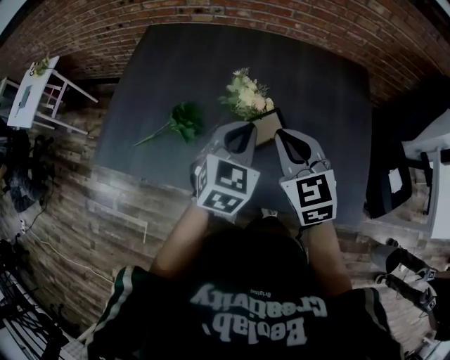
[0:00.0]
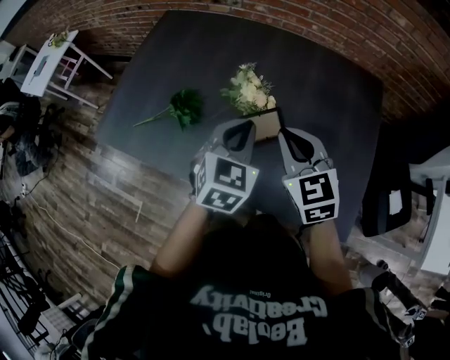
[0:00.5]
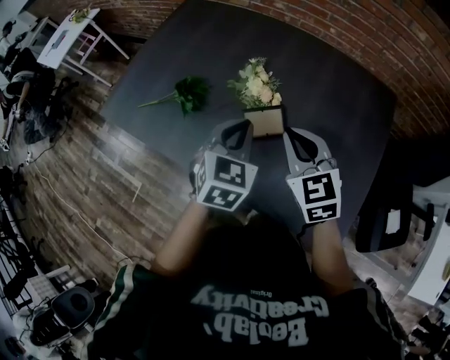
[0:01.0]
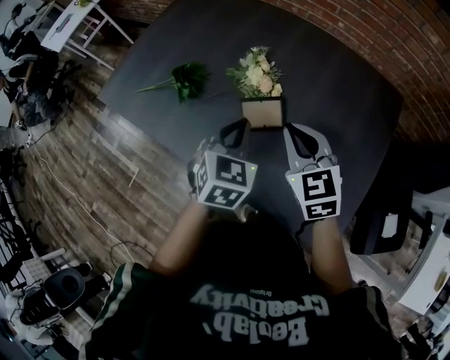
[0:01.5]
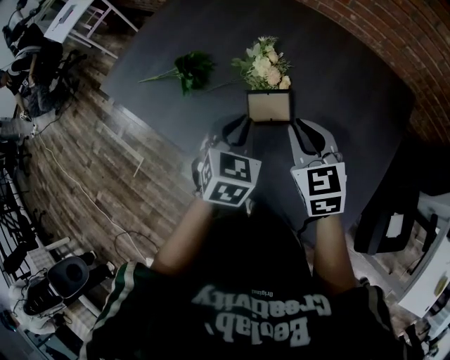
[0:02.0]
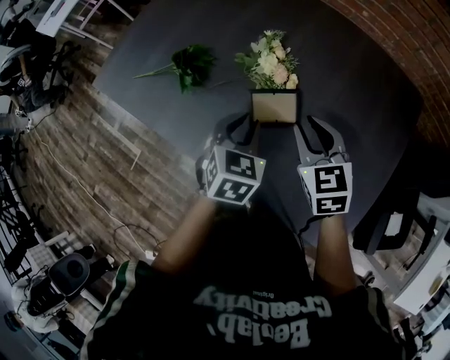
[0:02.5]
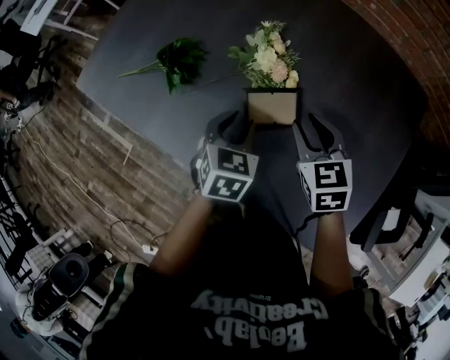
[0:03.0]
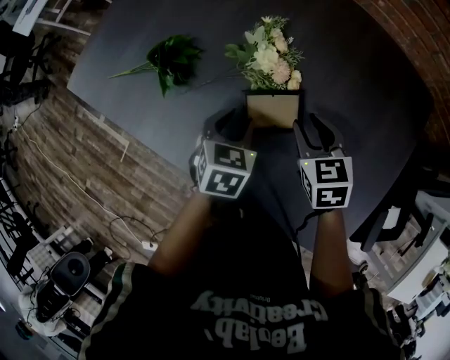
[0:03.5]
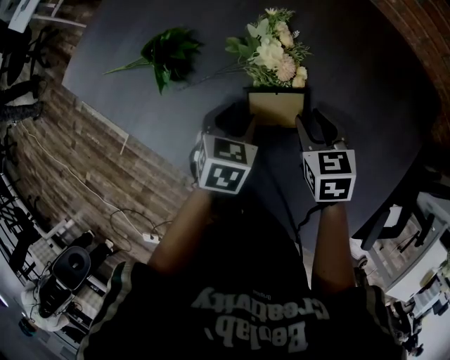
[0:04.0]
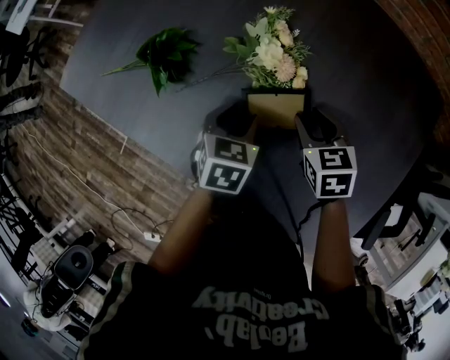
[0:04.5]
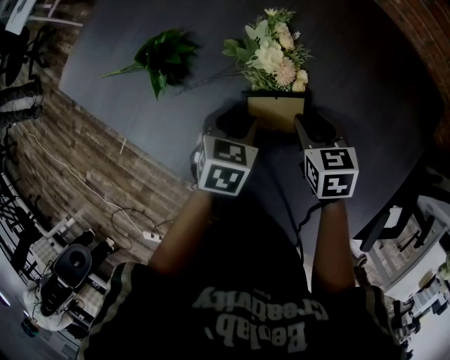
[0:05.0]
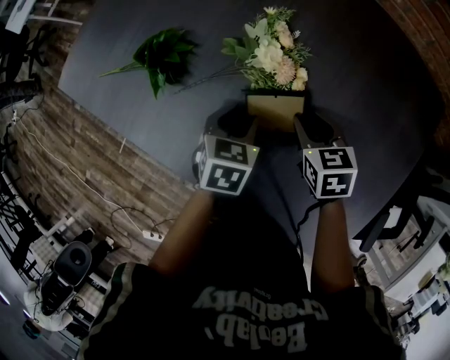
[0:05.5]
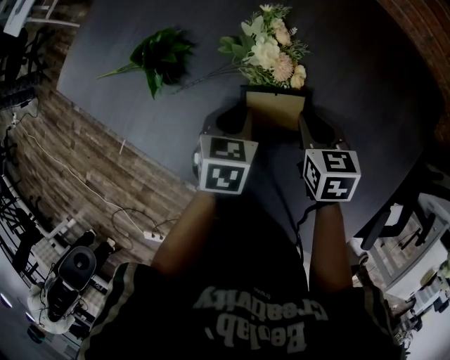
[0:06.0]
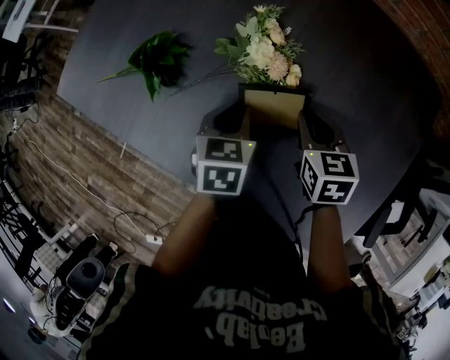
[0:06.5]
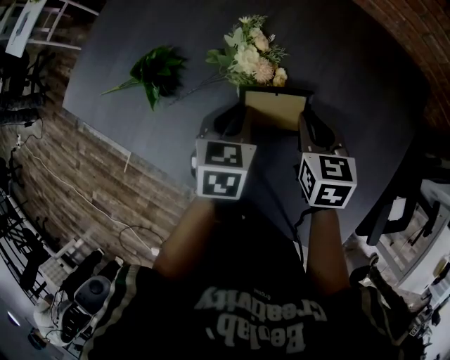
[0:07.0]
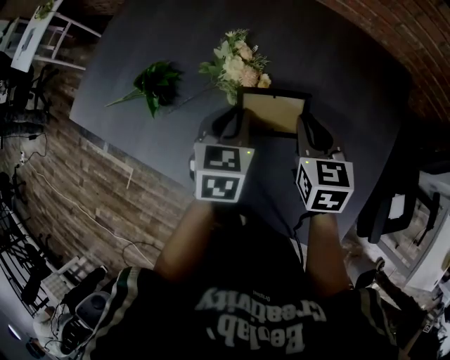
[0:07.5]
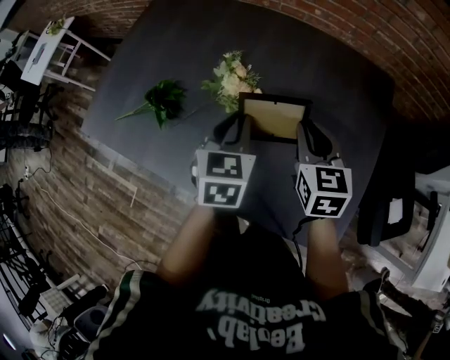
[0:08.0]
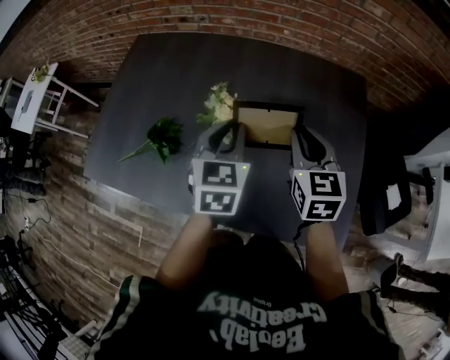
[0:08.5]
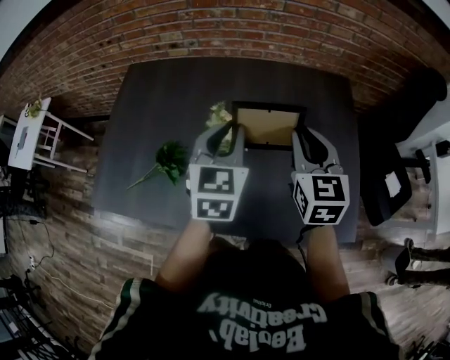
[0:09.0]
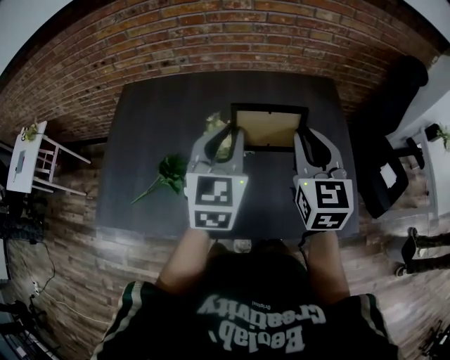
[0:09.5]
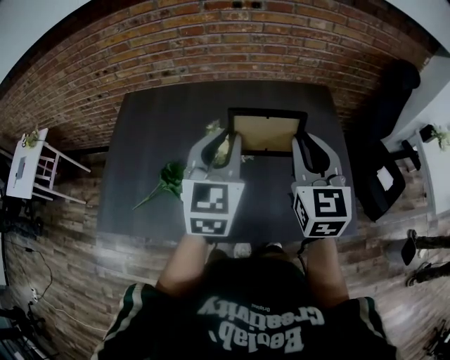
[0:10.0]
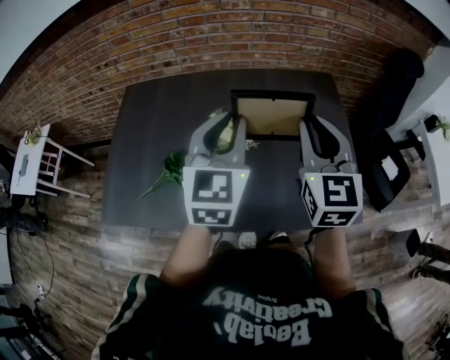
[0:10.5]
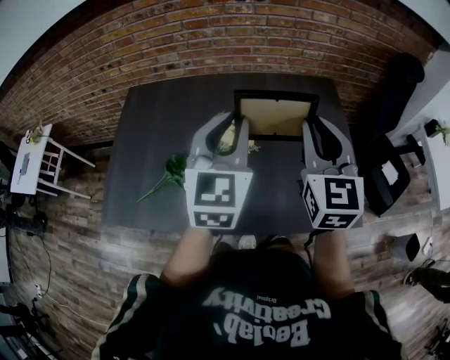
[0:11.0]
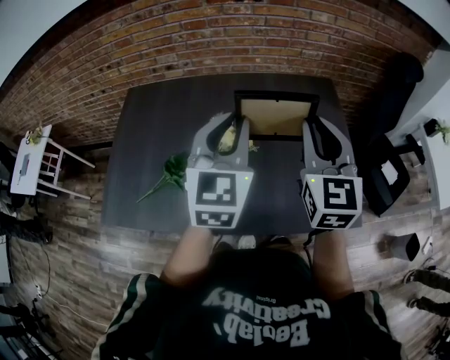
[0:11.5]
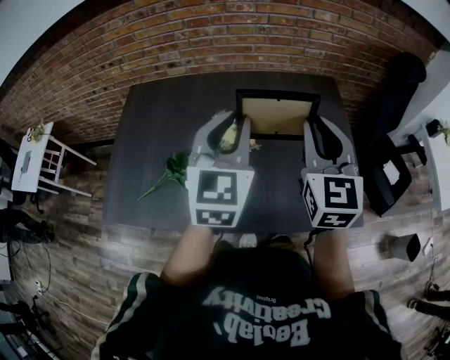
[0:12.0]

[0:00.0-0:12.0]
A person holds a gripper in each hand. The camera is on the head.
0:00.0 to 0:02.0: The left gripper heads downward, covering roughly 10 cm, and turns by about 30 degrees, while the right gripper heads to the right and downward, covering approximately 15 cm.
0:02.0 to 0:04.0: The two grippers go roughly 20 cm downward and forward. The left gripper rotates approximately 20 degrees, and opens up; the right gripper changes its angle by roughly 20 degrees, and opens up.
0:04.0 to 0:06.0: The right gripper closes. Meanwhile the left gripper closes up.
0:06.0 to 0:08.0: The grippers both shift upward by approximately 20 cm. The right gripper changes its angle by approximately 30 degrees. Meanwhile the left gripper swivels some 20 degrees.
0:08.0 to 0:10.0: The left gripper travels upward by approximately 20 cm, and changes its angle by roughly 40 degrees. Meanwhile the right gripper is displaced upward and backward by about 25 cm, and rotates roughly 30 degrees.
0:10.0 to 0:12.0: The grippers stay close to where they were, moving slightly.

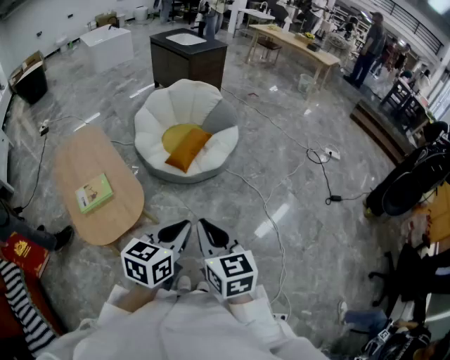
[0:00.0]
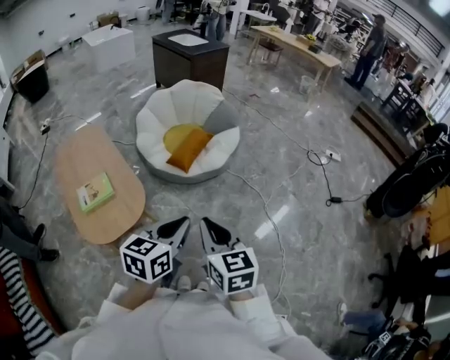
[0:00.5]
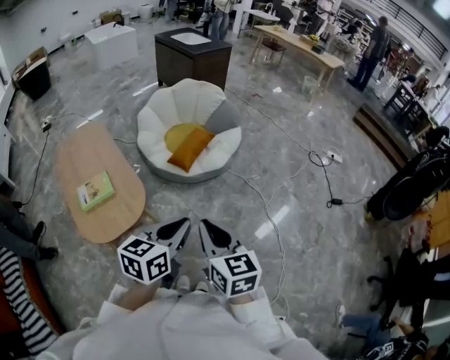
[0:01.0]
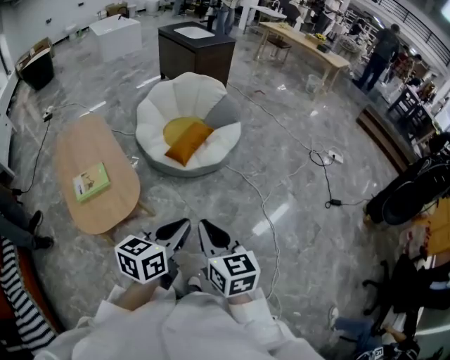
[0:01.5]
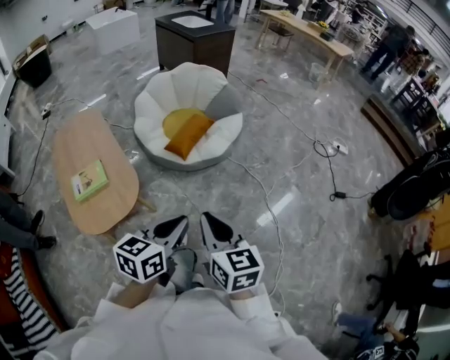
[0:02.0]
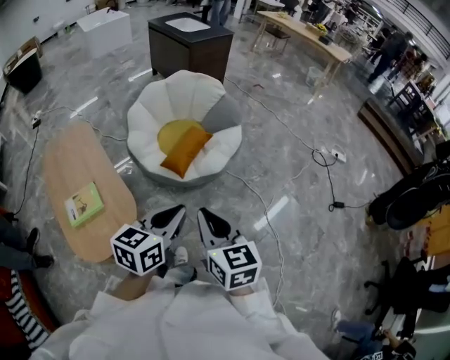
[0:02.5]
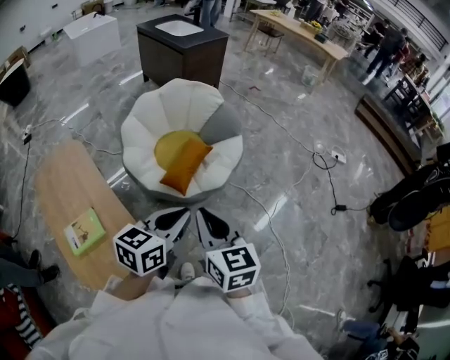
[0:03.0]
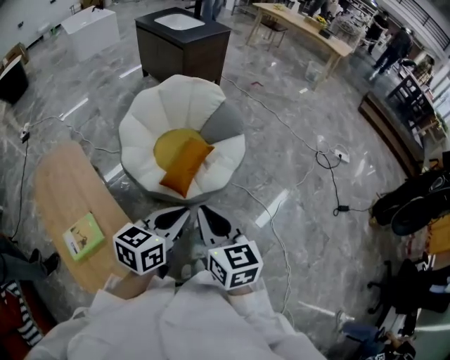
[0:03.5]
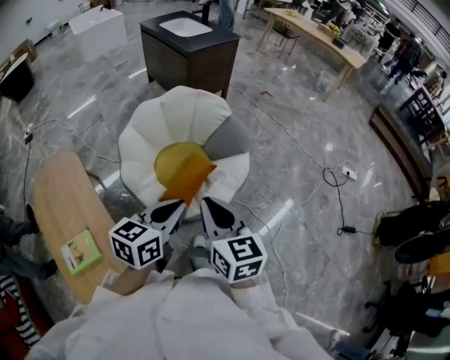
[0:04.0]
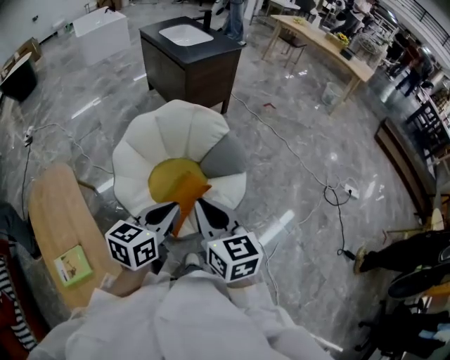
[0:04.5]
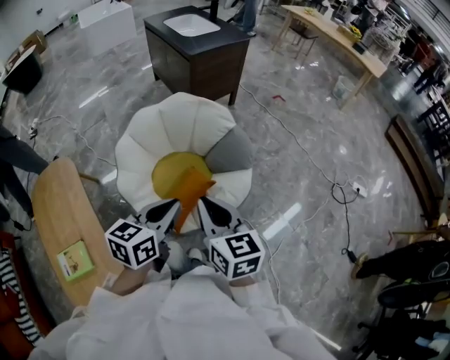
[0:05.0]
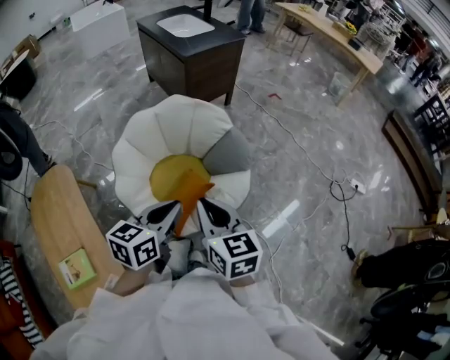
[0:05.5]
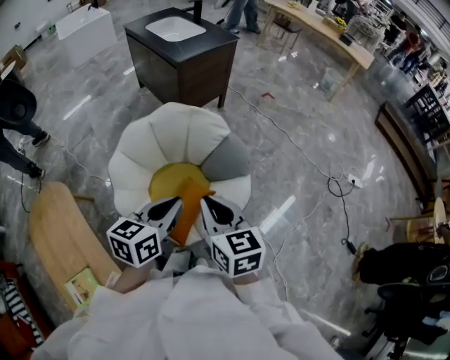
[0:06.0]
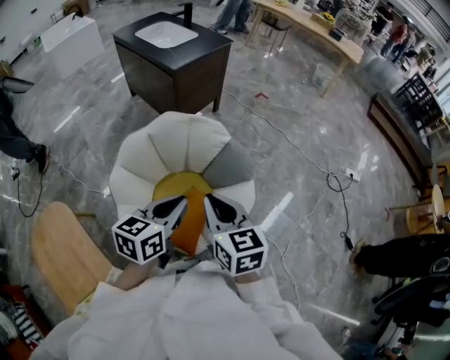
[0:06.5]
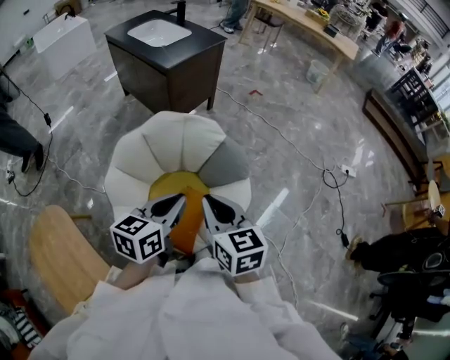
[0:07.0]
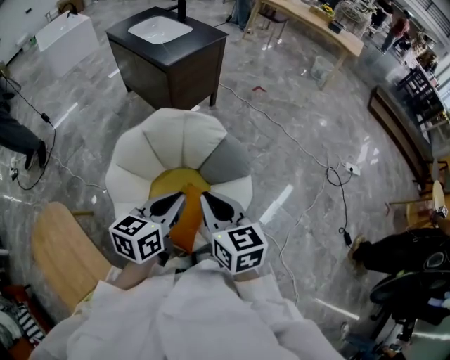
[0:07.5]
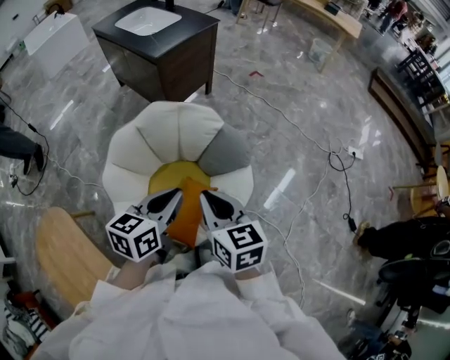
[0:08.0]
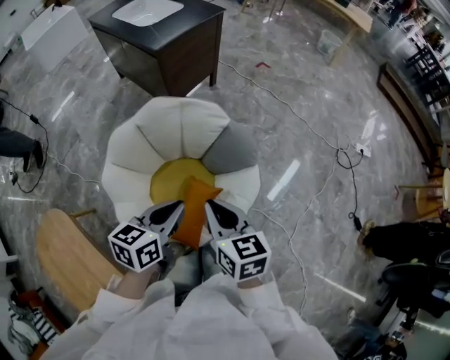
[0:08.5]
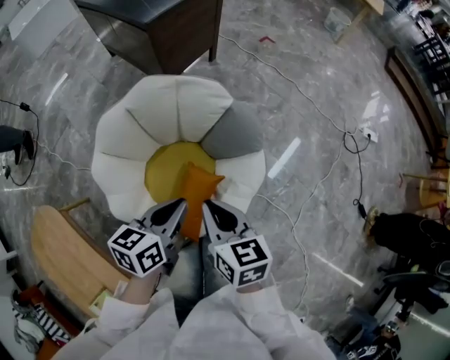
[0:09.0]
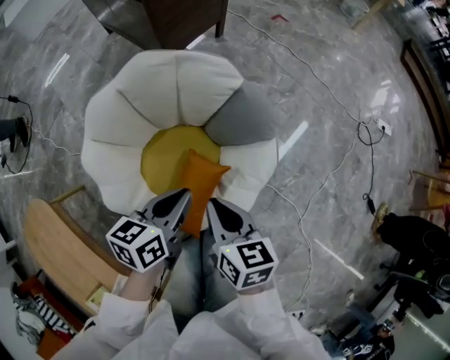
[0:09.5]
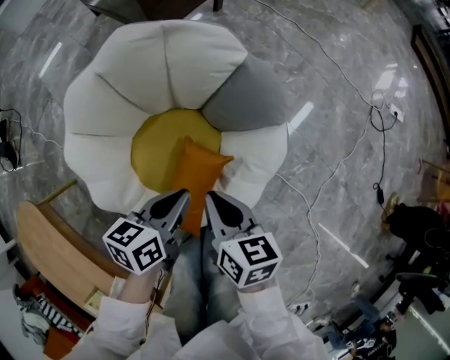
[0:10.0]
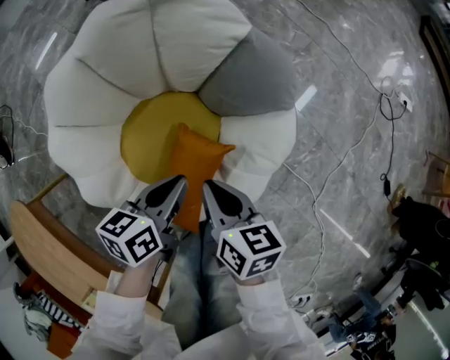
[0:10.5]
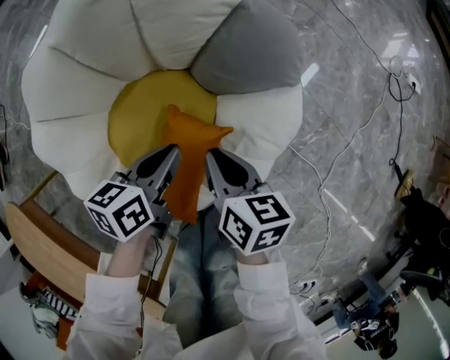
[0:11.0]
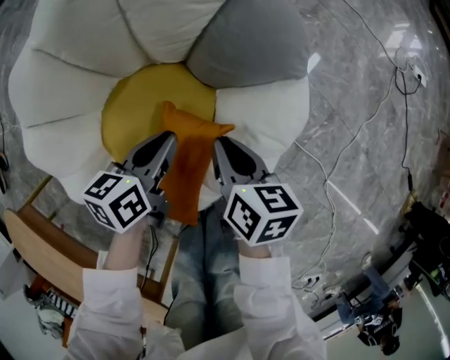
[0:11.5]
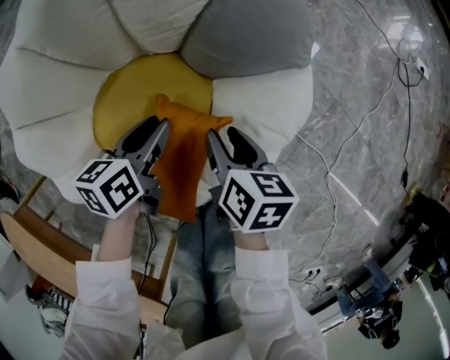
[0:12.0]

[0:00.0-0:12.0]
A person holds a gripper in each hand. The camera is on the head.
0:00.0 to 0:02.0: The left gripper moves about 5 cm; the right gripper ends up approximately 5 cm from where it was.
0:02.0 to 0:04.0: The pair of grippers is taken forward, some 50 cm.
0:04.0 to 0:06.0: Both grippers travel together forward, about 25 cm.
0:06.0 to 0:08.0: Both grippers move forward, about 10 cm.
0:08.0 to 0:10.0: Both grippers move downward, some 35 cm. The right gripper swivels approximately 20 degrees; the left gripper turns by some 20 degrees.
0:10.0 to 0:12.0: Both grippers travel together downward, roughly 25 cm. The left gripper opens its fingers. Meanwhile the right gripper opens up.

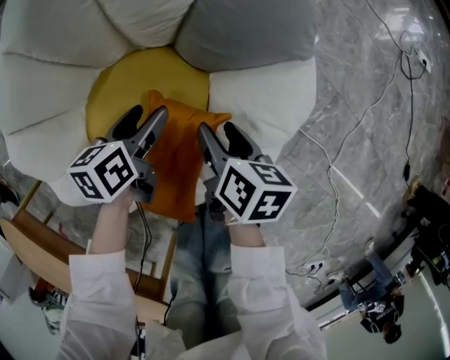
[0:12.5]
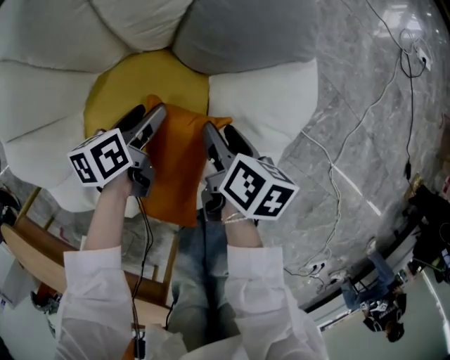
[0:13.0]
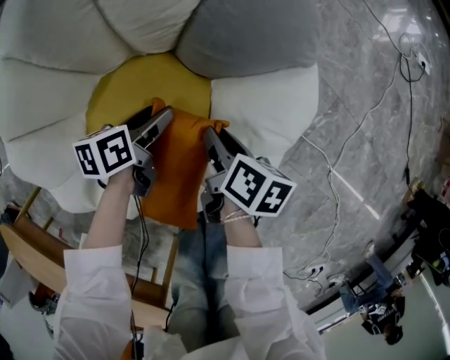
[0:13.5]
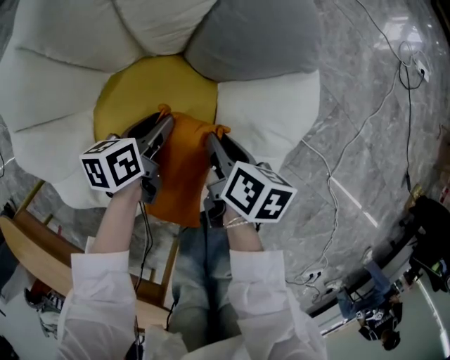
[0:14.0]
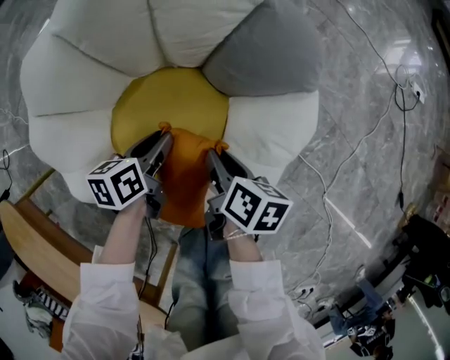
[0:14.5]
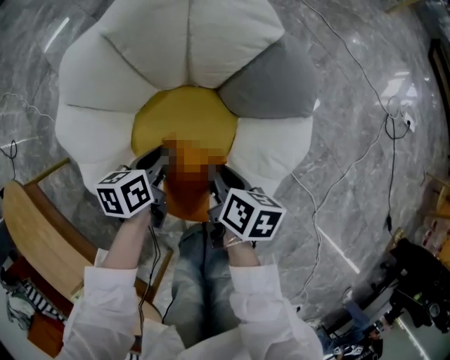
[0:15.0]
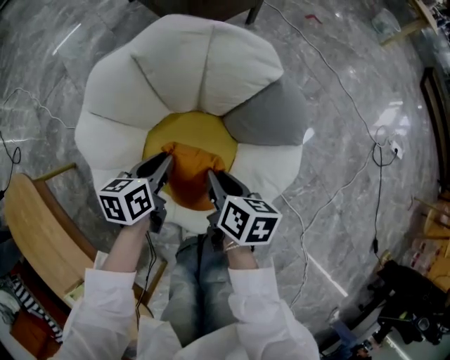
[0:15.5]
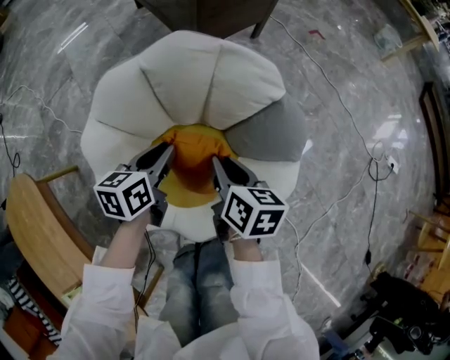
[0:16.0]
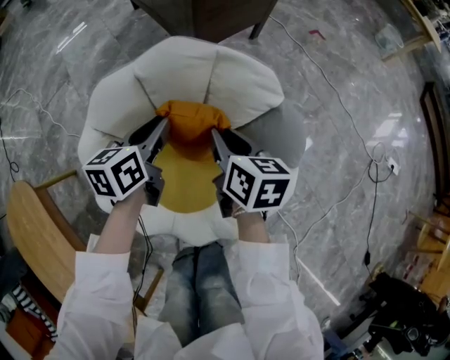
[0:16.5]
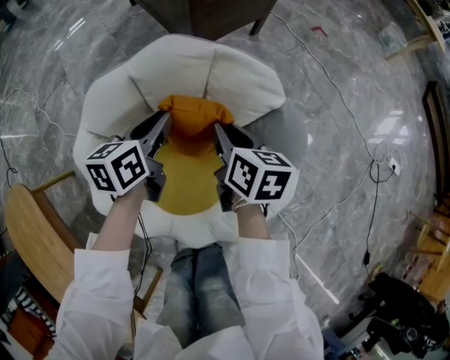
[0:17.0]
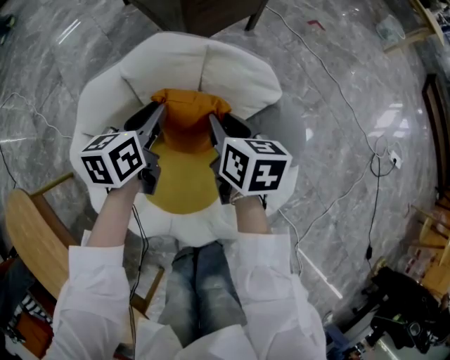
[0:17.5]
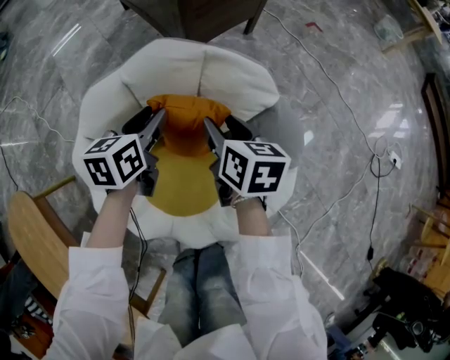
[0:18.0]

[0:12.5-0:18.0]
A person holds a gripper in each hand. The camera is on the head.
0:12.5 to 0:14.5: The right gripper moves some 5 cm, and closes up. Meanwhile the left gripper changes place by about 5 cm, and closes its fingers.
0:14.5 to 0:16.0: The left gripper travels upward by about 20 cm, while the right gripper heads upward and forward, covering approximately 25 cm, and turns by about 30 degrees.
0:16.0 to 0:18.0: The grippers both shift forward by about 15 cm. The right gripper opens up.
